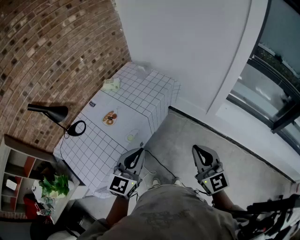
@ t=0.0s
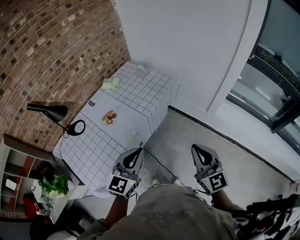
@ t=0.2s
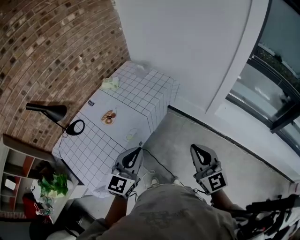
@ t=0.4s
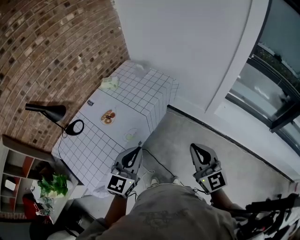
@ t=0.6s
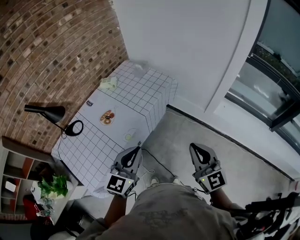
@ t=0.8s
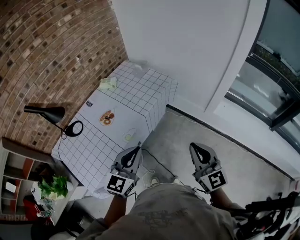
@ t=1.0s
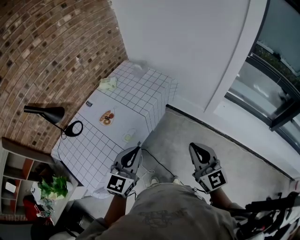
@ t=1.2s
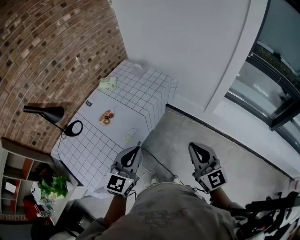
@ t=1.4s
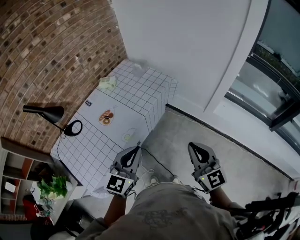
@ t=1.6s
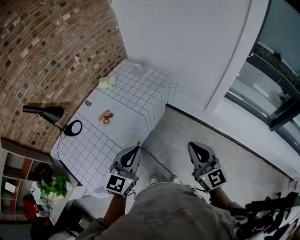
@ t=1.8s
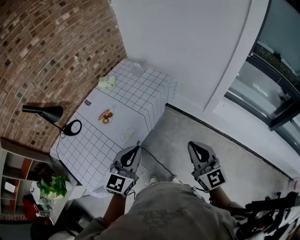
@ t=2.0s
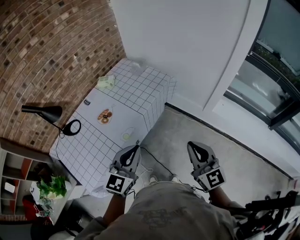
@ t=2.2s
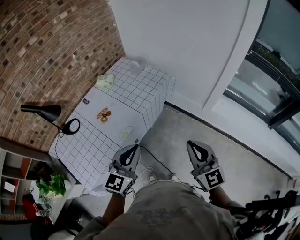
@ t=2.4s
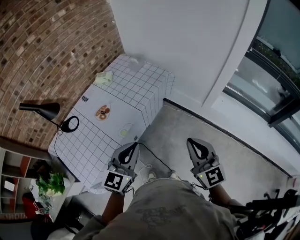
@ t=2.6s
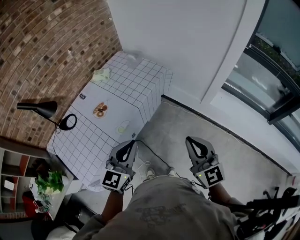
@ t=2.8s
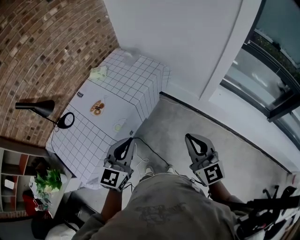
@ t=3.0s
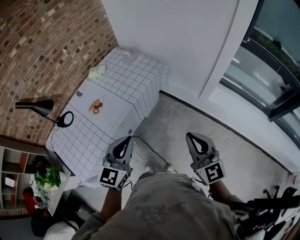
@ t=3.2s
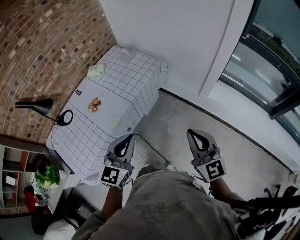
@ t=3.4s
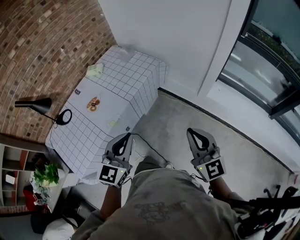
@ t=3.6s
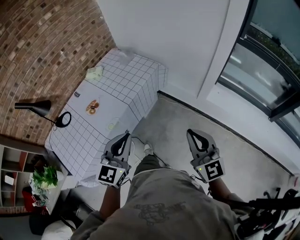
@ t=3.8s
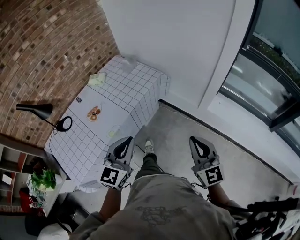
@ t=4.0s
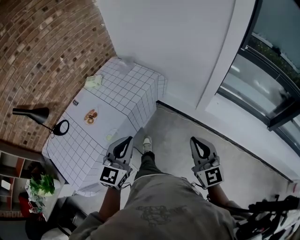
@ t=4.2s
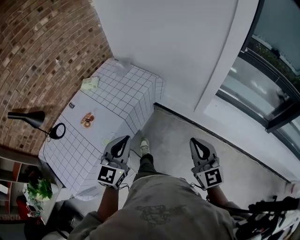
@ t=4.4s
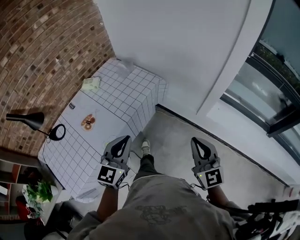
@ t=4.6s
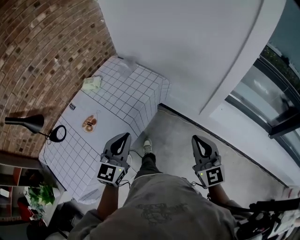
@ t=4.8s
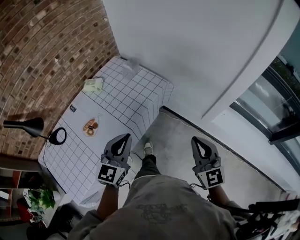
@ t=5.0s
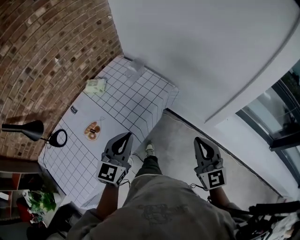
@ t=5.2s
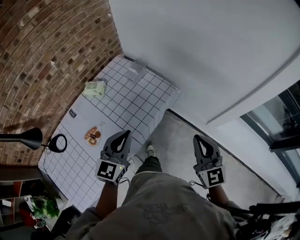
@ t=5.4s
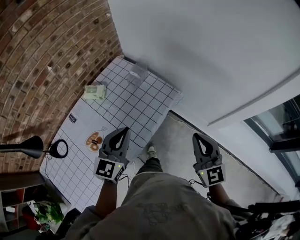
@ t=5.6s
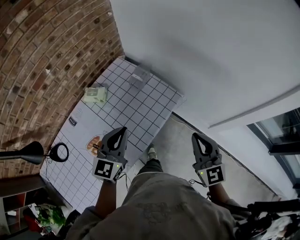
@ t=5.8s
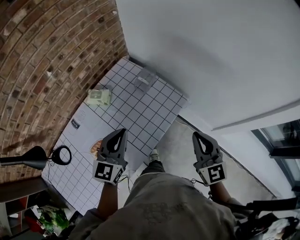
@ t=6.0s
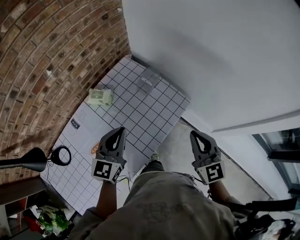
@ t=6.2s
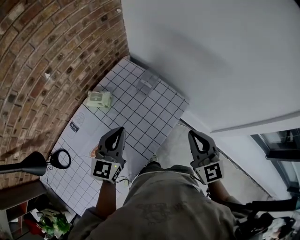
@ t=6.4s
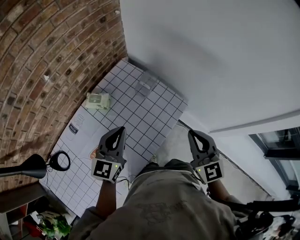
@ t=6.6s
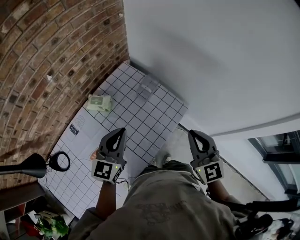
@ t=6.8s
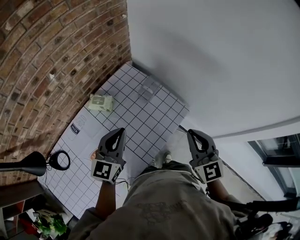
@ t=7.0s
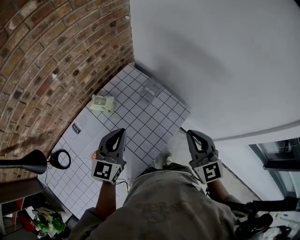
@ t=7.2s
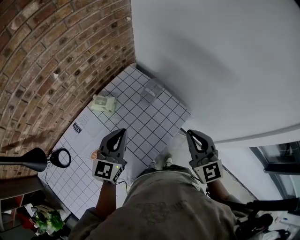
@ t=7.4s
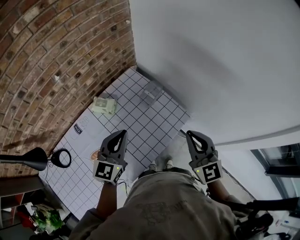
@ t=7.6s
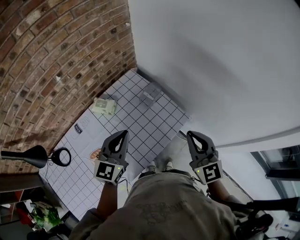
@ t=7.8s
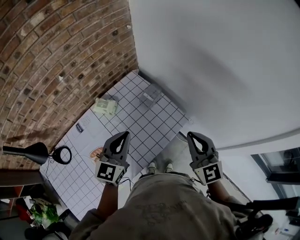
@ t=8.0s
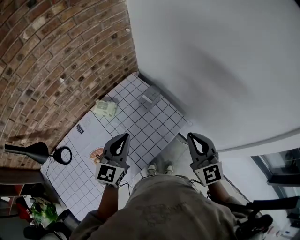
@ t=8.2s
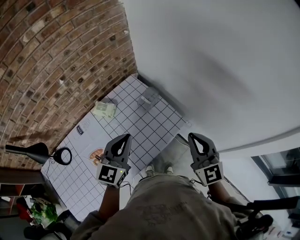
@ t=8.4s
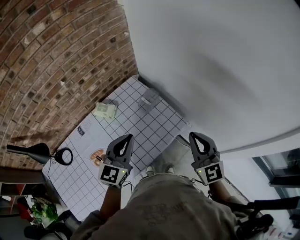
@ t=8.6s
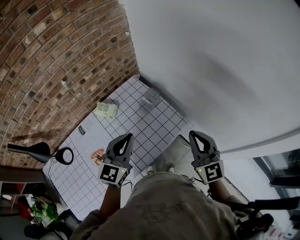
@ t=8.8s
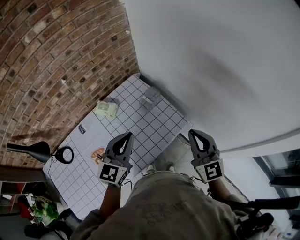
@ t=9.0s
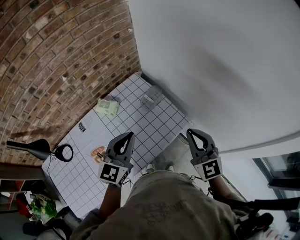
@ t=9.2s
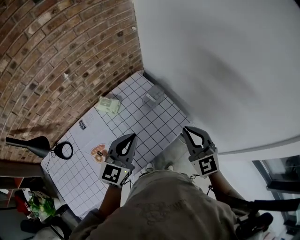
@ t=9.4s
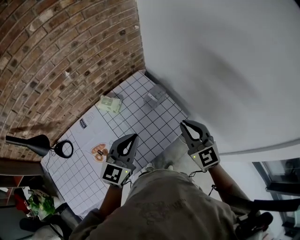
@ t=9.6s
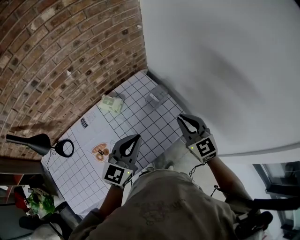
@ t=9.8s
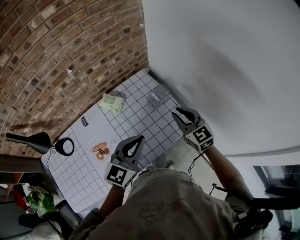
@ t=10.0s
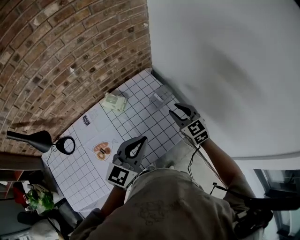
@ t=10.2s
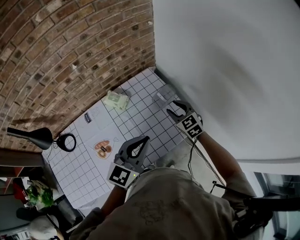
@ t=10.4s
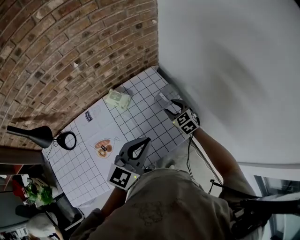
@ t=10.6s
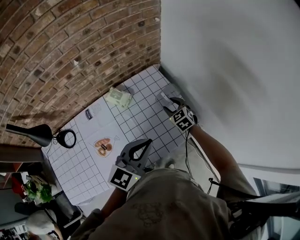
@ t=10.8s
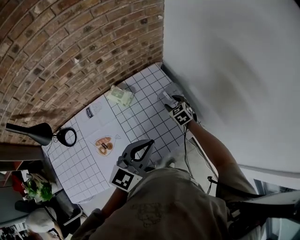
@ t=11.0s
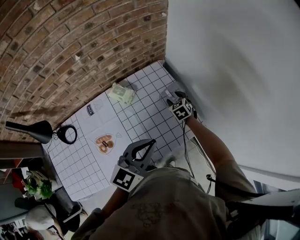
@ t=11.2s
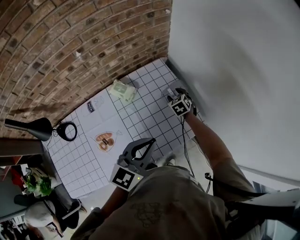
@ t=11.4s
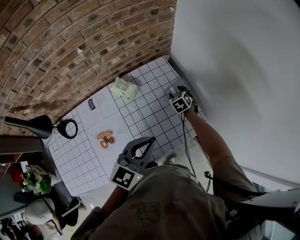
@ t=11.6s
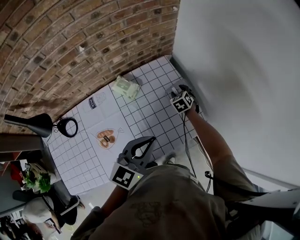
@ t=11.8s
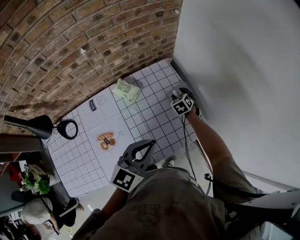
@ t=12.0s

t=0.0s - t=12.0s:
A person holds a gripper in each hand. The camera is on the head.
t=0.0s - t=3.0s: The grippers move only a little.
t=3.0s - t=4.4s: The right gripper shifts approximately 10 cm to the right and forward. The left gripper shifts some 10 cm forward and to the right.
t=4.4s - t=6.0s: Both grippers are carried forward and to the left, roughly 40 cm.
t=6.0s - t=7.6s: The left gripper heads forward, covering some 5 cm. The right gripper moves forward, about 10 cm.
t=7.6s - t=9.0s: Both grippers move to the right, some 5 cm.
t=9.0s - t=10.4s: The right gripper moves forward, downward and to the left, some 30 cm, changes its angle by about 30 degrees, and opens.
t=10.4s - t=12.0s: The right gripper heads downward and forward, covering some 20 cm, and rotates some 30 degrees.

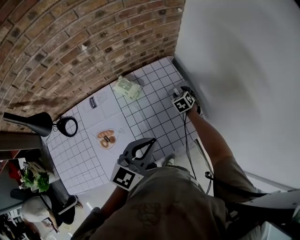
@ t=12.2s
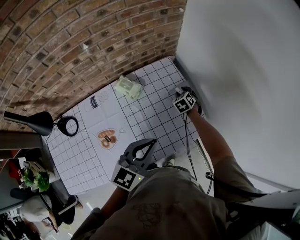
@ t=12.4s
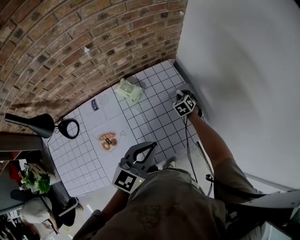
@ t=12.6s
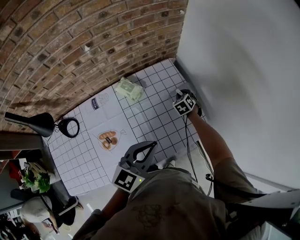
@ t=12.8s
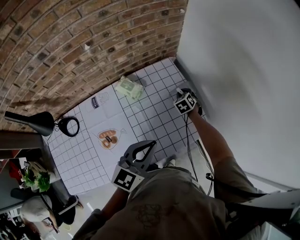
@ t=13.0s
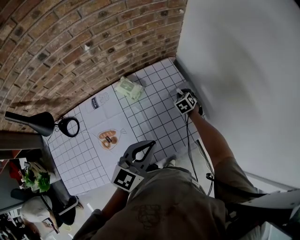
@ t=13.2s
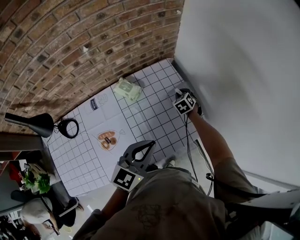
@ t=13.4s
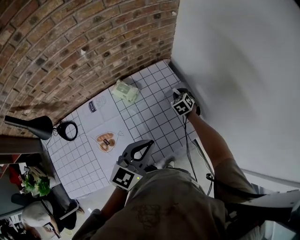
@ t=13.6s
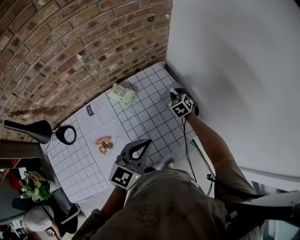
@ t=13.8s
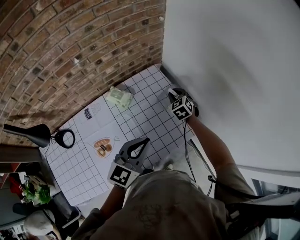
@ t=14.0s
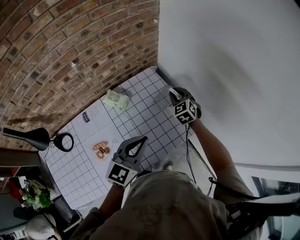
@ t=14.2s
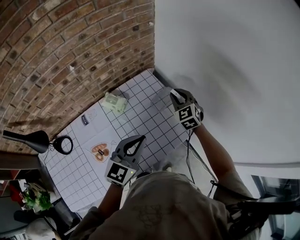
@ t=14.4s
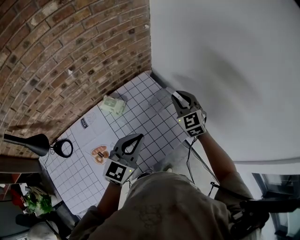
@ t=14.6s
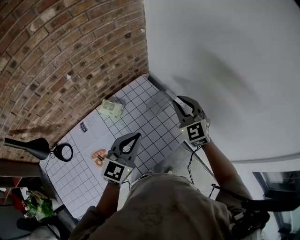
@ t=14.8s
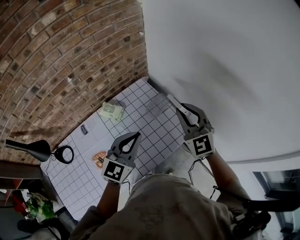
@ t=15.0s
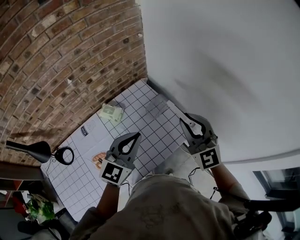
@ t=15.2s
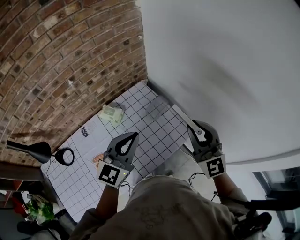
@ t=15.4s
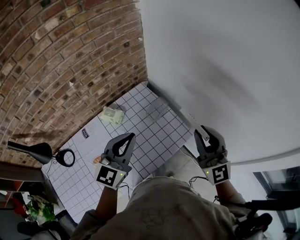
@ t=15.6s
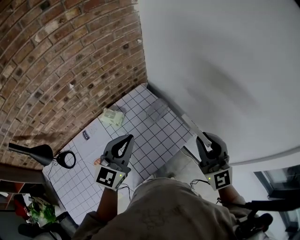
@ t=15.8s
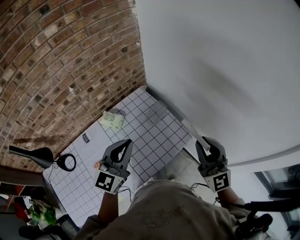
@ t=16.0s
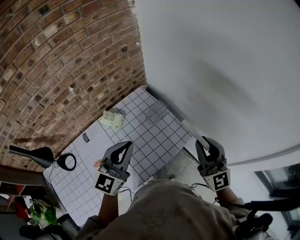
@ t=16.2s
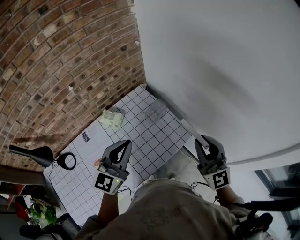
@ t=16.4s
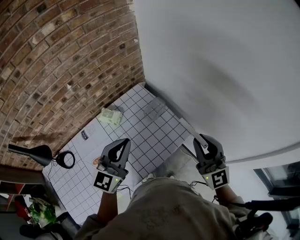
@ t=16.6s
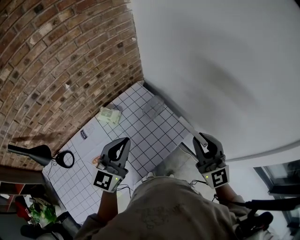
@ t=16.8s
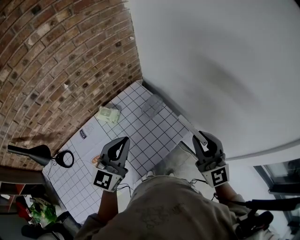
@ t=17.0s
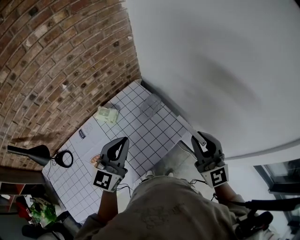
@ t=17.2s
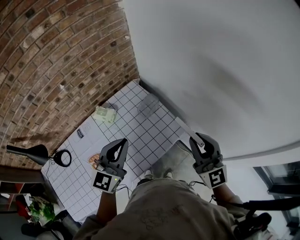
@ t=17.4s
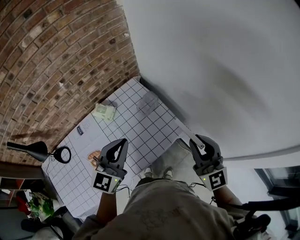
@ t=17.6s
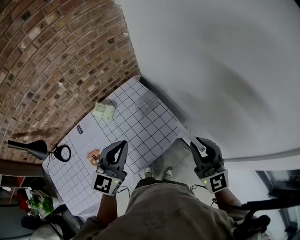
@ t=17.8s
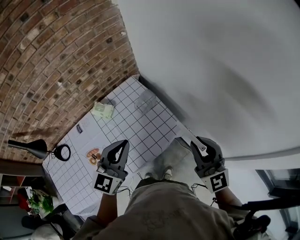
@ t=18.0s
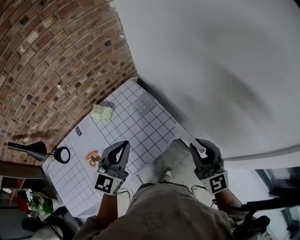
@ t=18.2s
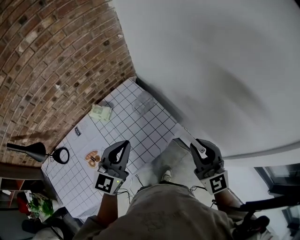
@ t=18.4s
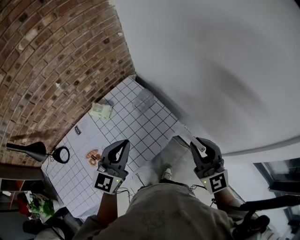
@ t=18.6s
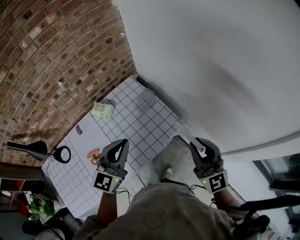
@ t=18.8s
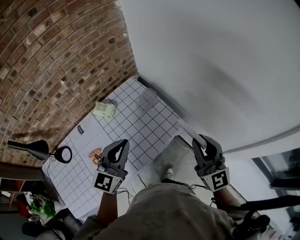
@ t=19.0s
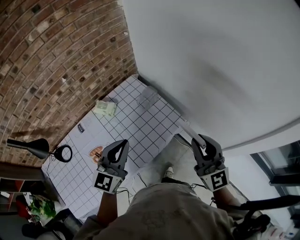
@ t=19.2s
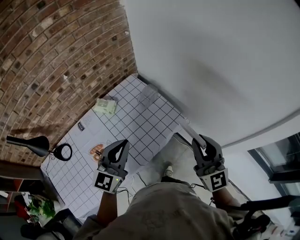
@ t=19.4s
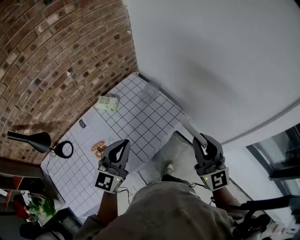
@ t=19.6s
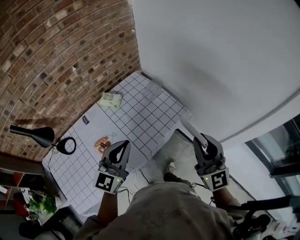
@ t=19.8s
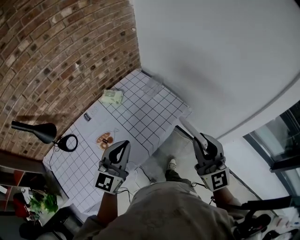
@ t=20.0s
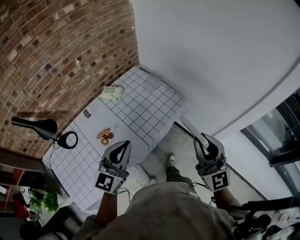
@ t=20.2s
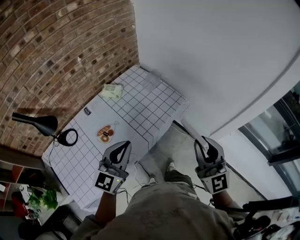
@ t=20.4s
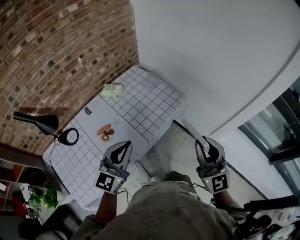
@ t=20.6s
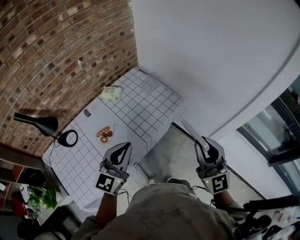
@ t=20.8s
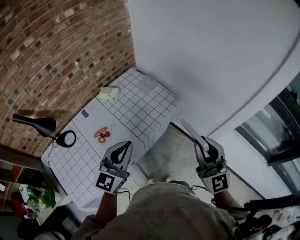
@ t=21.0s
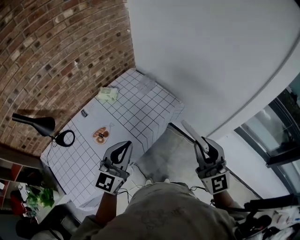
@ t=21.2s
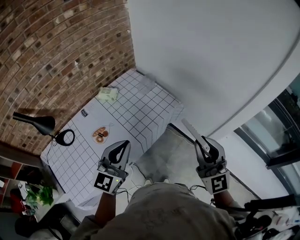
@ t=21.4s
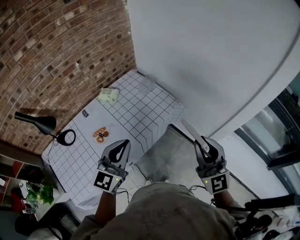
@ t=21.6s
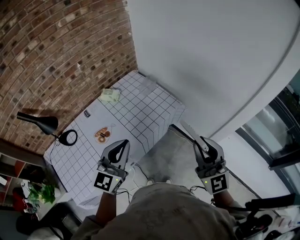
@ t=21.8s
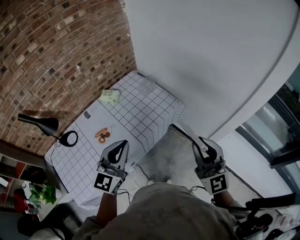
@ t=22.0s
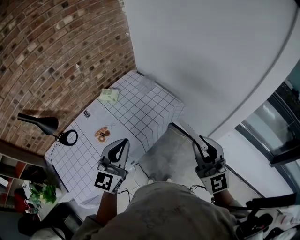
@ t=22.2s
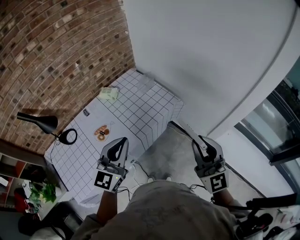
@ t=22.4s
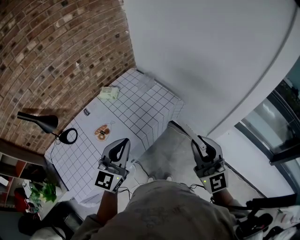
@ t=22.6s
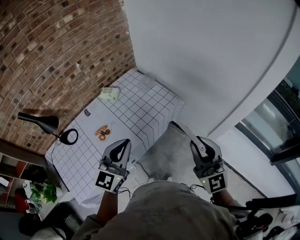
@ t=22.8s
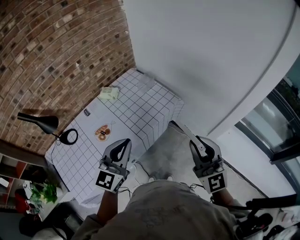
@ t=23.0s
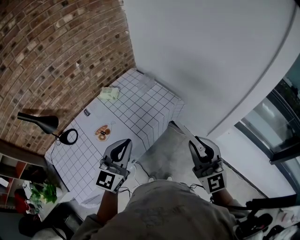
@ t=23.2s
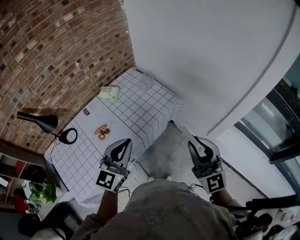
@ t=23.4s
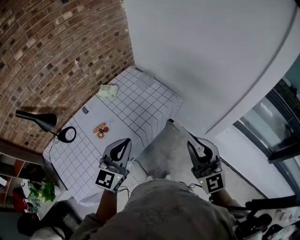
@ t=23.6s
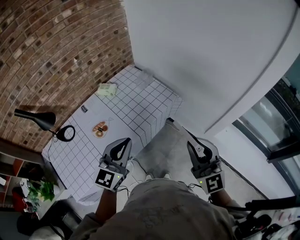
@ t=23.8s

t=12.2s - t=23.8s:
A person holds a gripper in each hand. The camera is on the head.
t=12.2s - t=13.6s: The right gripper closes up.
t=13.6s - t=15.0s: The right gripper moves upward and backward, about 35 cm, and tilts its fingers some 40 degrees upward; the left gripper shifts approximately 5 cm upward.
t=15.0s - t=16.6s: The right gripper goes some 15 cm backward and to the right, and rotates roughly 20 degrees. The left gripper shifts by some 5 cm.
t=16.6s - t=18.0s: The two grippers go about 10 cm to the right.
t=18.0s - t=19.4s: The two grippers go about 10 cm backward and to the left.
t=19.4s - t=21.0s: Both grippers move backward, some 20 cm.
t=21.0s - t=23.8s: The grippers move only a little.
